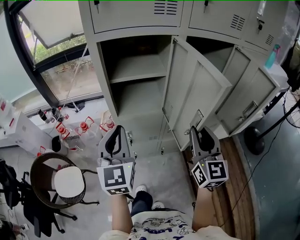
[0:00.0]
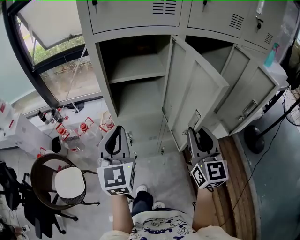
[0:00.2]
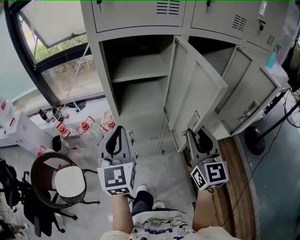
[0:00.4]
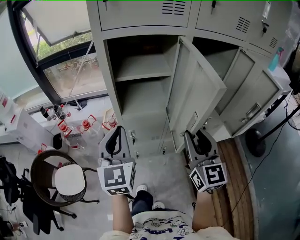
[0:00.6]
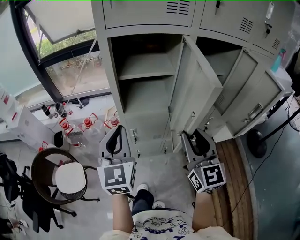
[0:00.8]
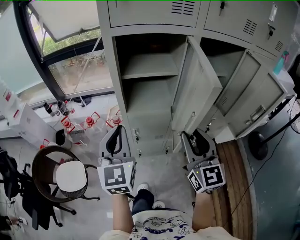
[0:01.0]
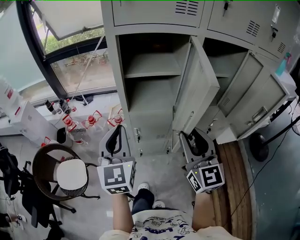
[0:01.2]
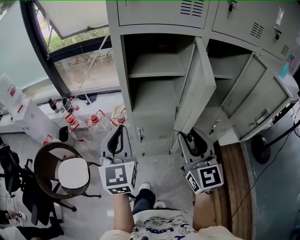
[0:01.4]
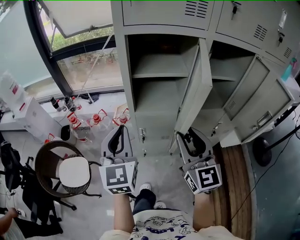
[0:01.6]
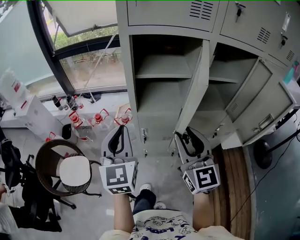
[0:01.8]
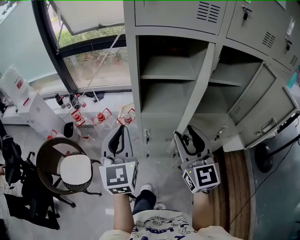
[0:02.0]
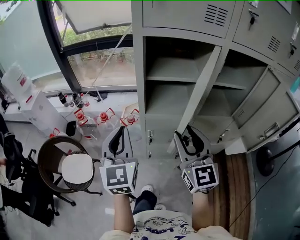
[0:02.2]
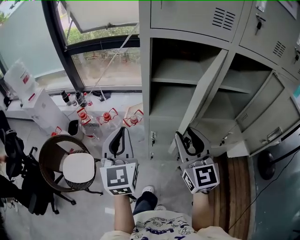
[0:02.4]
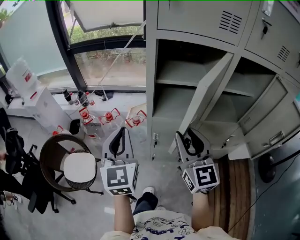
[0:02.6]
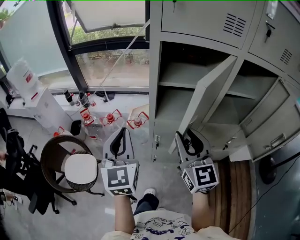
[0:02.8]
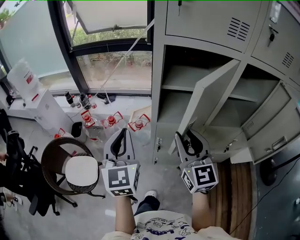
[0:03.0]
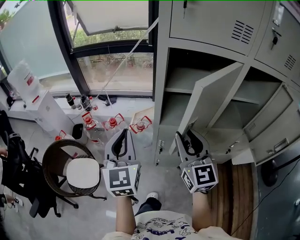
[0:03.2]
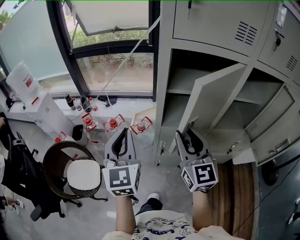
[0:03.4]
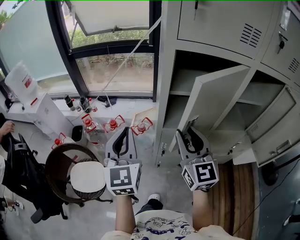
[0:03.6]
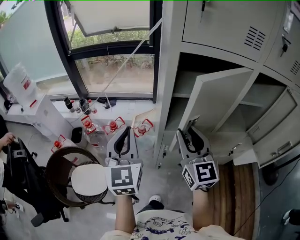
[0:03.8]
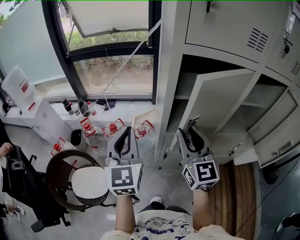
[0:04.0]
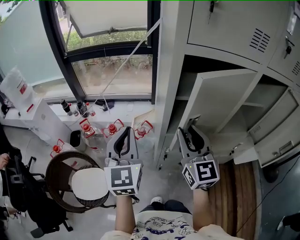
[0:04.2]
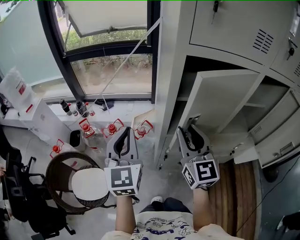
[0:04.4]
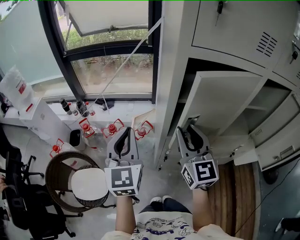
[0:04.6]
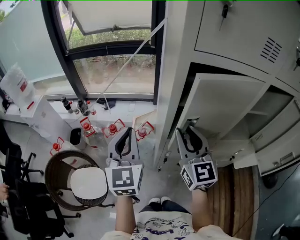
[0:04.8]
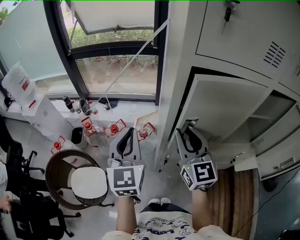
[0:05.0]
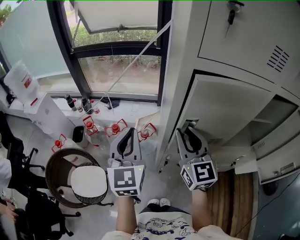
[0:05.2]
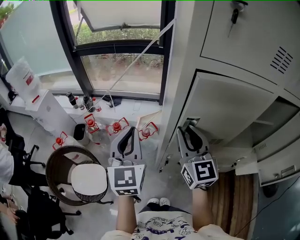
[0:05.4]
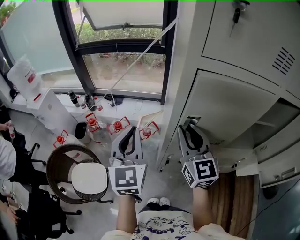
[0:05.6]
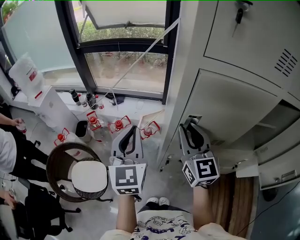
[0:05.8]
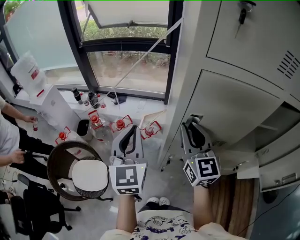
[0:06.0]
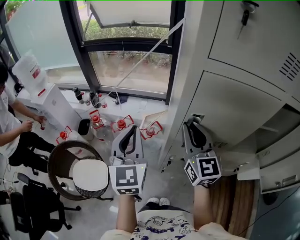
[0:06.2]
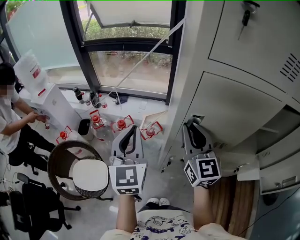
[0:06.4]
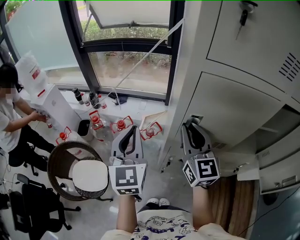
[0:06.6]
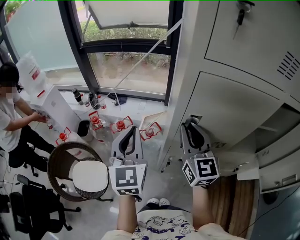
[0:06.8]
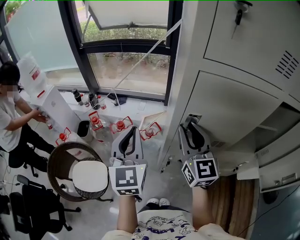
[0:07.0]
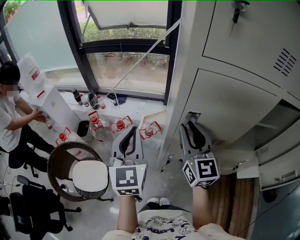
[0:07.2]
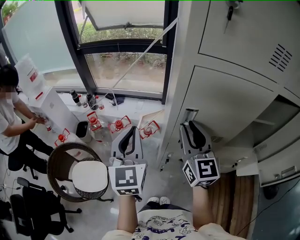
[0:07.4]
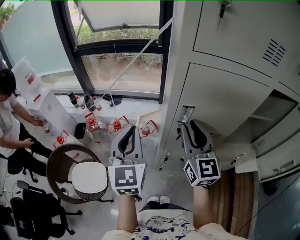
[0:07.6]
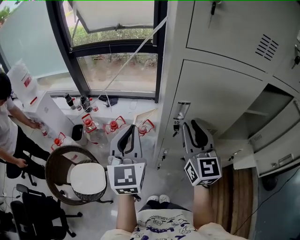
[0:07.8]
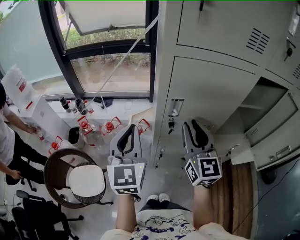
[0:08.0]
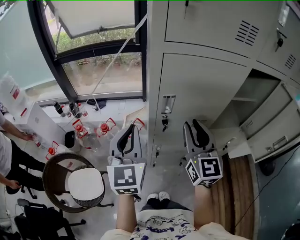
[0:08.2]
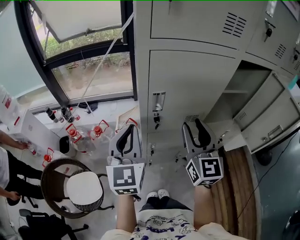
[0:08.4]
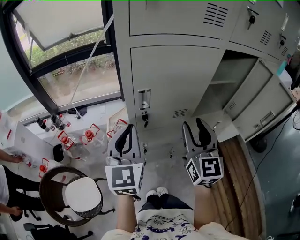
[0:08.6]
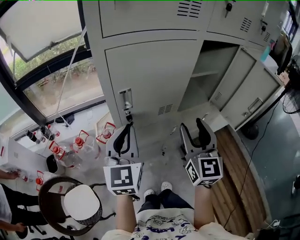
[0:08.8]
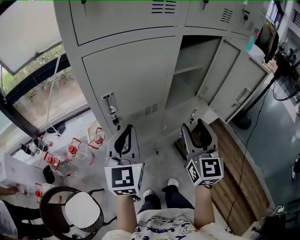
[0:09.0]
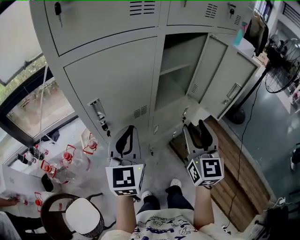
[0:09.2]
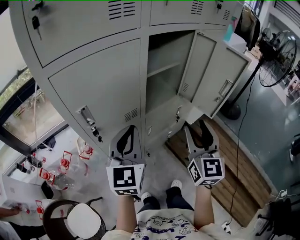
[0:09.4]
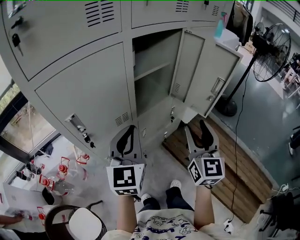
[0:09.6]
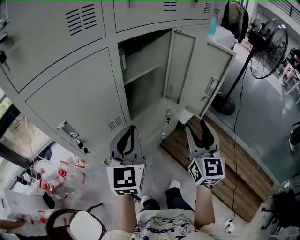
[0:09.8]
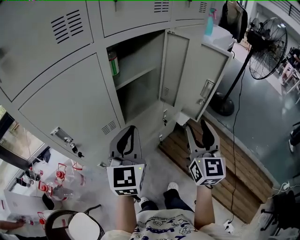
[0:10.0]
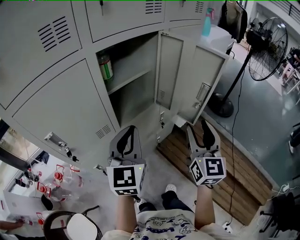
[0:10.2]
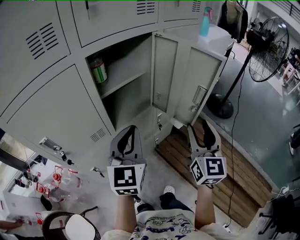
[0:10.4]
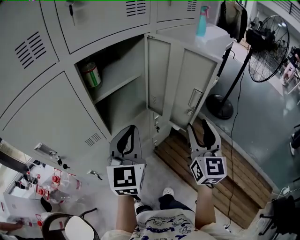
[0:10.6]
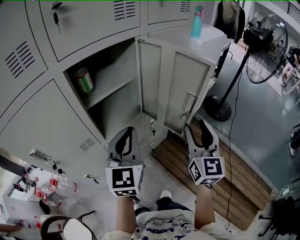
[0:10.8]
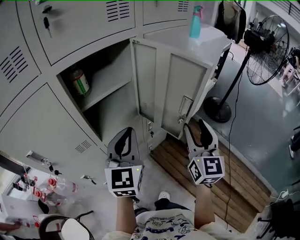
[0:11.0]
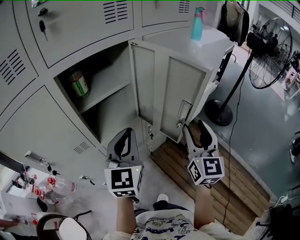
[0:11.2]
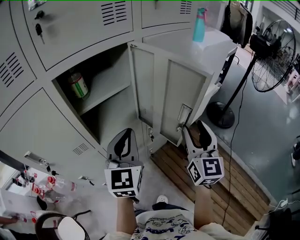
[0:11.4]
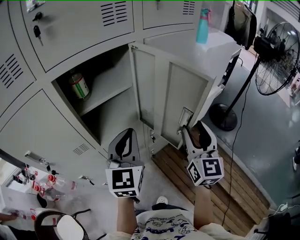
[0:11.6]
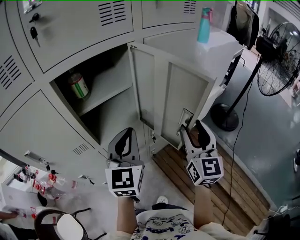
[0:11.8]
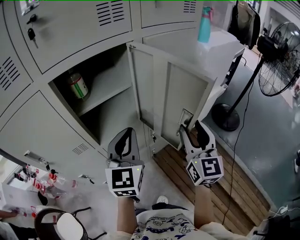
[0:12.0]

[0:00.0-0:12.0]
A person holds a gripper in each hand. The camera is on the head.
0:00.0 to 0:01.6: The left gripper heads to the left, covering about 5 cm. The right gripper moves to the left, approximately 10 cm.
0:01.6 to 0:03.0: The left gripper goes about 10 cm to the left, while the right gripper travels to the left and forward by approximately 10 cm.
0:03.0 to 0:04.4: Both grippers move forward, about 10 cm.
0:04.4 to 0:06.0: The right gripper goes about 5 cm forward.
0:06.0 to 0:07.6: There are only small adjustments of the grippers.
0:07.6 to 0:09.0: The right gripper shifts by roughly 25 cm, turns by roughly 40 degrees, and opens. The left gripper moves about 20 cm, and turns by roughly 40 degrees.
0:09.0 to 0:10.4: The left gripper shifts about 25 cm to the right and forward, while the right gripper moves to the right, approximately 25 cm.
0:10.4 to 0:12.0: Both grippers move forward and to the right, about 10 cm.

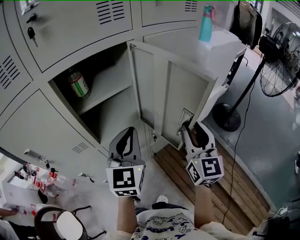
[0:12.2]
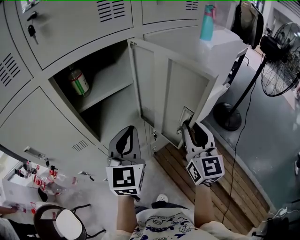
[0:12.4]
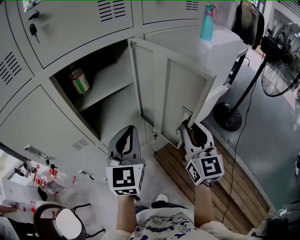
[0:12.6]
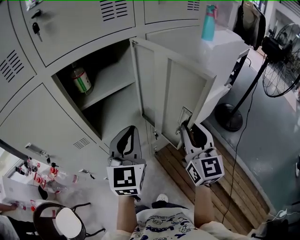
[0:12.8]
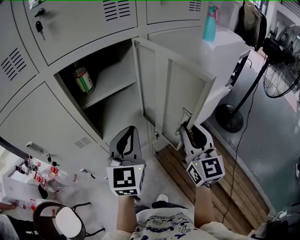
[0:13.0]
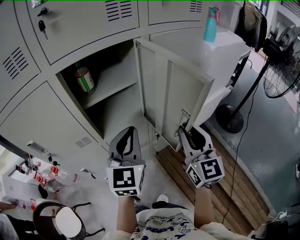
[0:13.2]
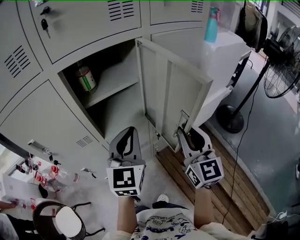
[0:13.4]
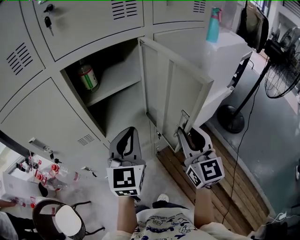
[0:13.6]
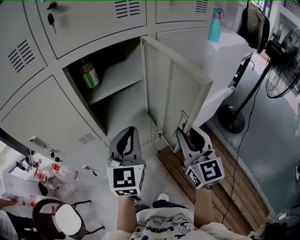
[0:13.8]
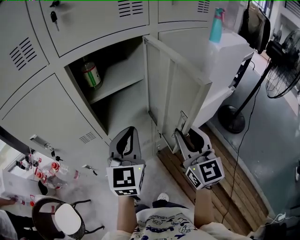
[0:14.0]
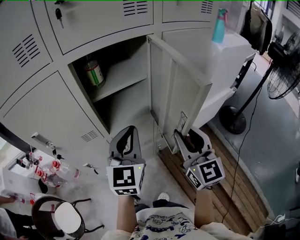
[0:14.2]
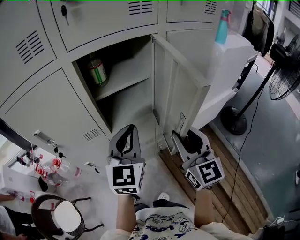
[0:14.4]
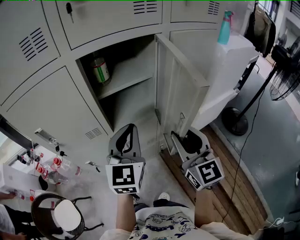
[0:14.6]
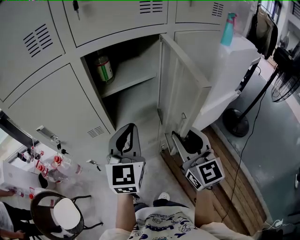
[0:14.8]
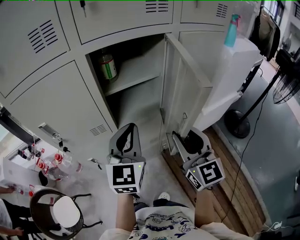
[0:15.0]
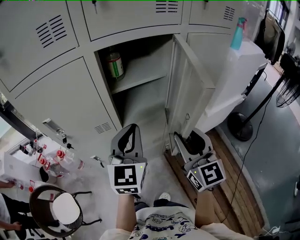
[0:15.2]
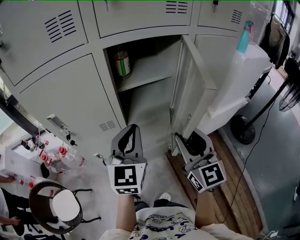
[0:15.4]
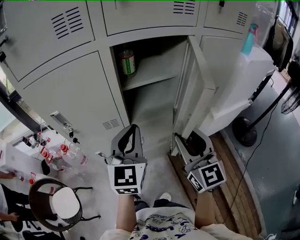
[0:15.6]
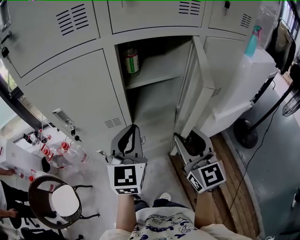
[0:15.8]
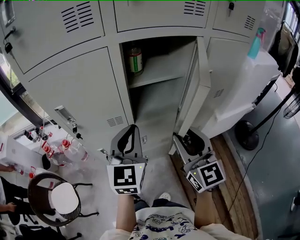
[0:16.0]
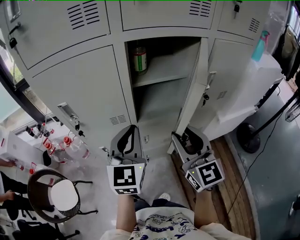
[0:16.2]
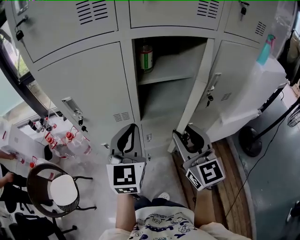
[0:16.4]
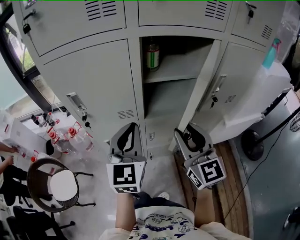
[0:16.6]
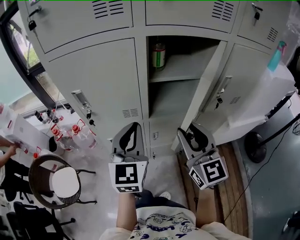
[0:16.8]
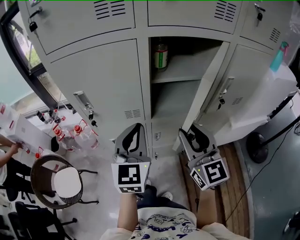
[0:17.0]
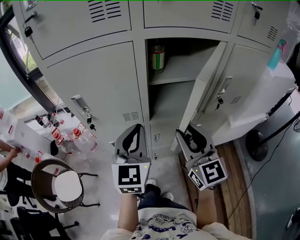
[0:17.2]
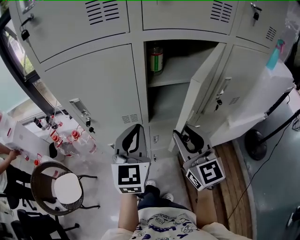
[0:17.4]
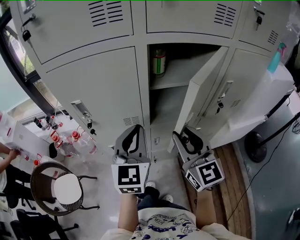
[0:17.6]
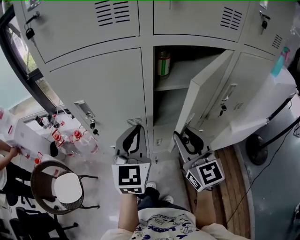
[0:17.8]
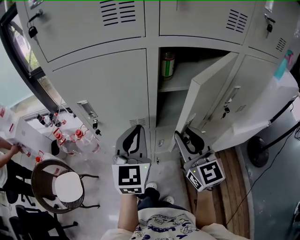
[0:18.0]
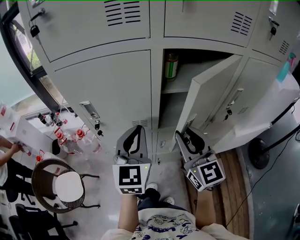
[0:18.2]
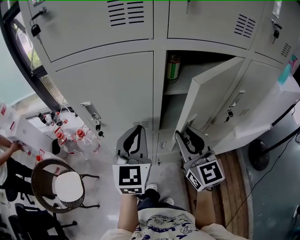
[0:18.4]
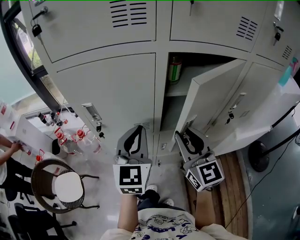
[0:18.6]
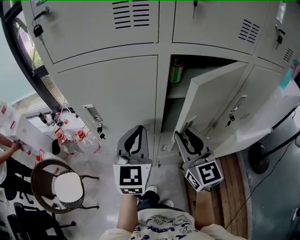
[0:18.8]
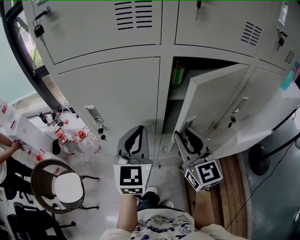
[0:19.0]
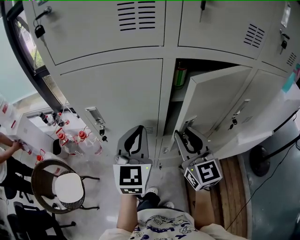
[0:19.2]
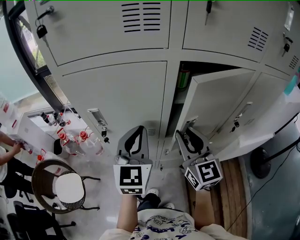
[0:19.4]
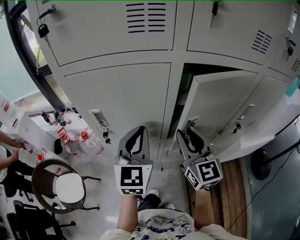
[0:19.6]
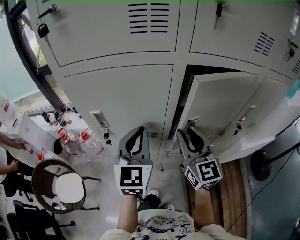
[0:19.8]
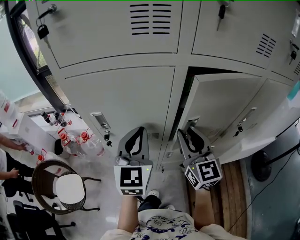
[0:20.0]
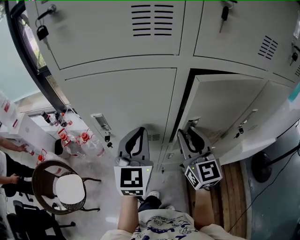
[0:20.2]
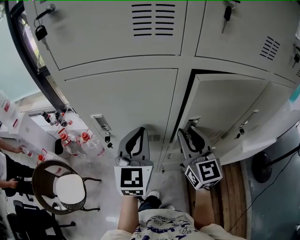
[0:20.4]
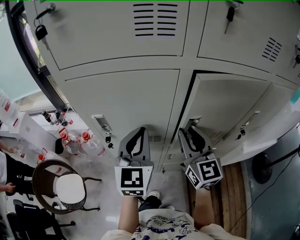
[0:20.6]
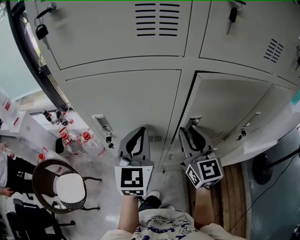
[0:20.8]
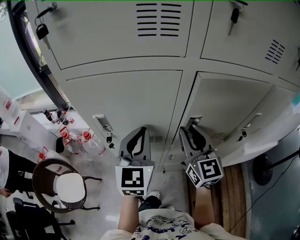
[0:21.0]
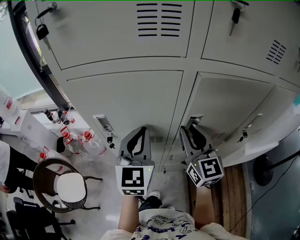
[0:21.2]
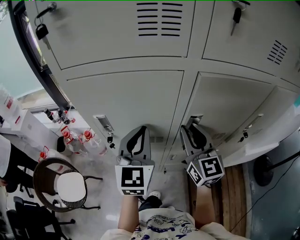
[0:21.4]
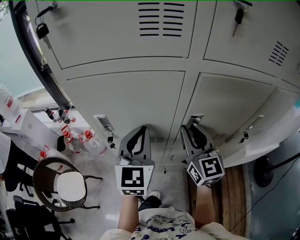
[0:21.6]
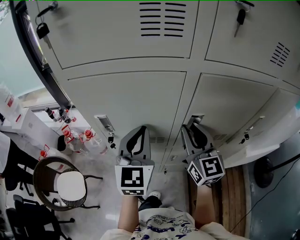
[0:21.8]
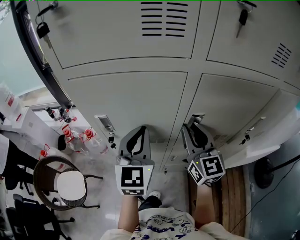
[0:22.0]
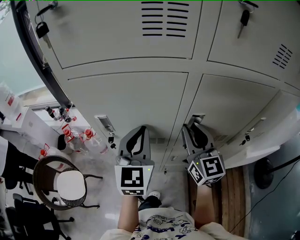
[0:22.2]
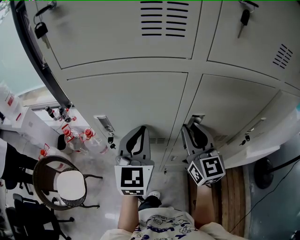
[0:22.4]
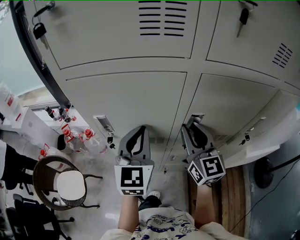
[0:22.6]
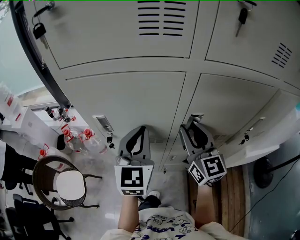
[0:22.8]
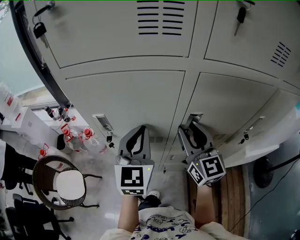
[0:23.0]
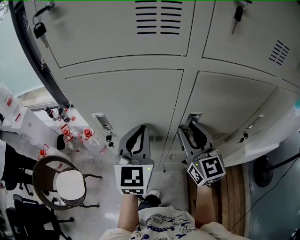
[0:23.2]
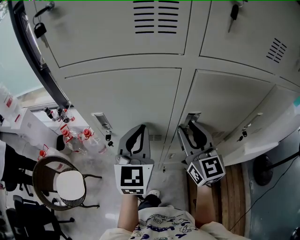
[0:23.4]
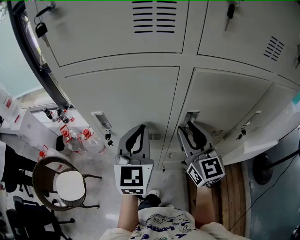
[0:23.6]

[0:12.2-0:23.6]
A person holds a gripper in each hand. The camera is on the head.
0:12.2 to 0:13.6: The right gripper shifts by approximately 5 cm.
0:13.6 to 0:15.0: Both grippers move to the left, approximately 5 cm.
0:15.0 to 0:16.4: The two grippers go roughly 10 cm to the left.
0:16.4 to 0:17.8: The right gripper ends up roughly 5 cm from where it was.
0:17.8 to 0:19.4: The right gripper goes approximately 5 cm forward. The left gripper moves some 5 cm.
0:19.4 to 0:20.8: The grippers move only a little.
0:20.8 to 0:23.6: The grippers move only a little.

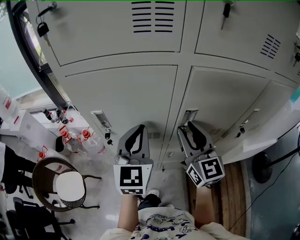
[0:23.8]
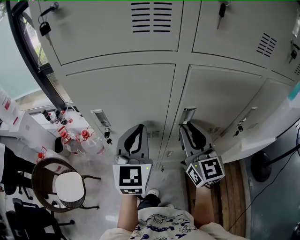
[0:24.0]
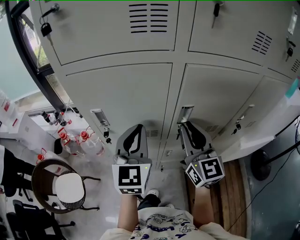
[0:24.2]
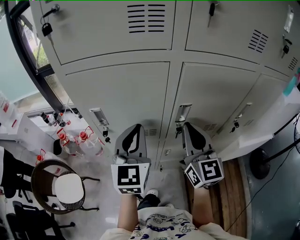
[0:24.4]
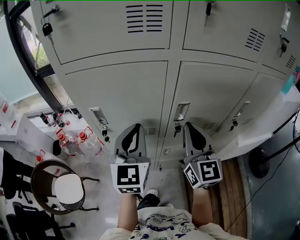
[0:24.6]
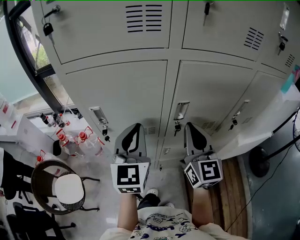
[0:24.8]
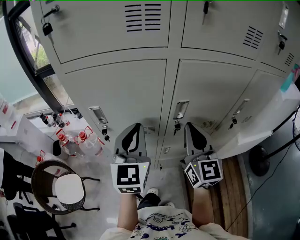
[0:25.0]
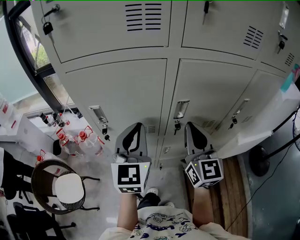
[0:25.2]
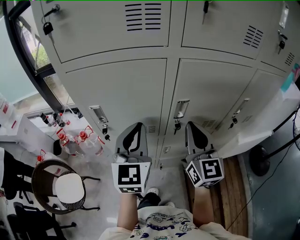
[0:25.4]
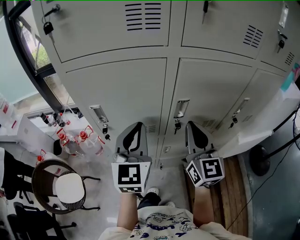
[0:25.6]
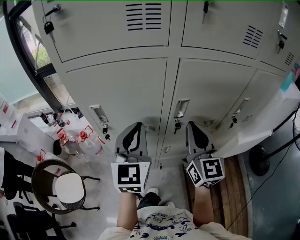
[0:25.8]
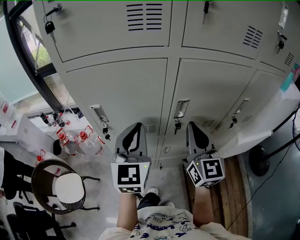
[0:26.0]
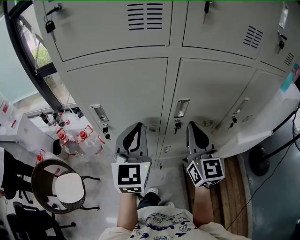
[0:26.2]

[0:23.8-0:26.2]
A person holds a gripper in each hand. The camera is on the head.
0:23.8 to 0:25.0: The right gripper shifts by about 5 cm, and closes.
0:25.0 to 0:26.2: Neither gripper changes place.
